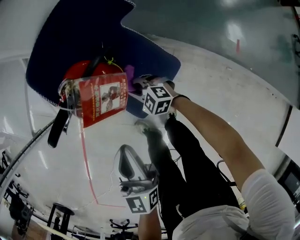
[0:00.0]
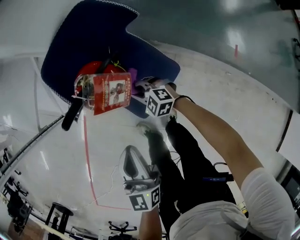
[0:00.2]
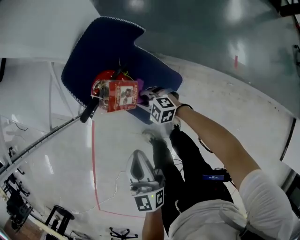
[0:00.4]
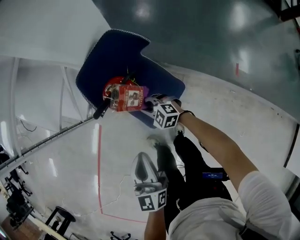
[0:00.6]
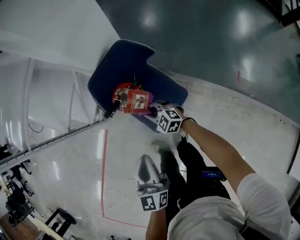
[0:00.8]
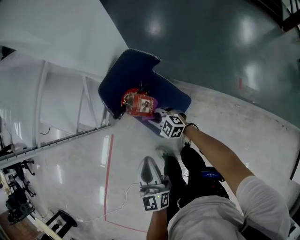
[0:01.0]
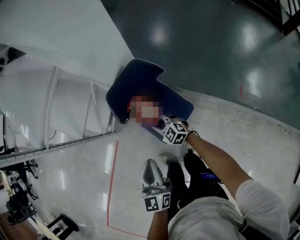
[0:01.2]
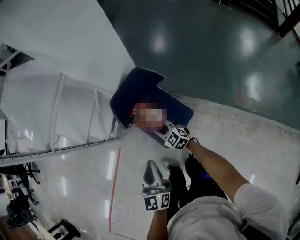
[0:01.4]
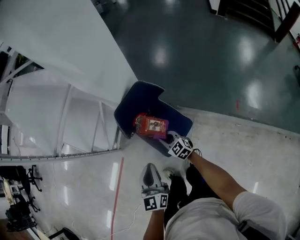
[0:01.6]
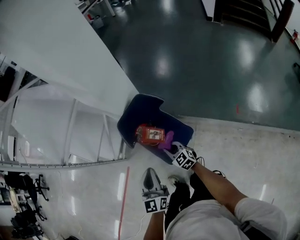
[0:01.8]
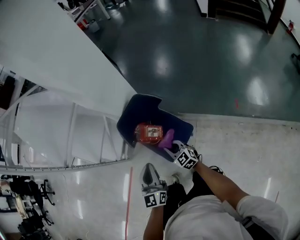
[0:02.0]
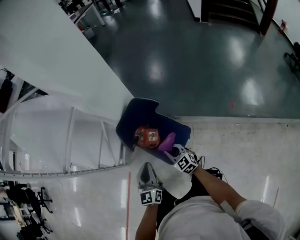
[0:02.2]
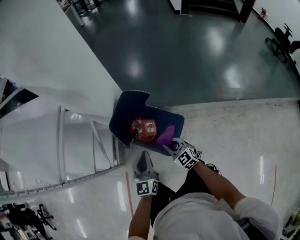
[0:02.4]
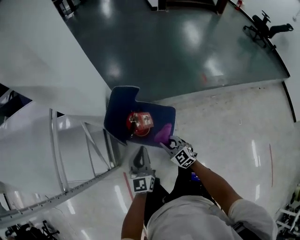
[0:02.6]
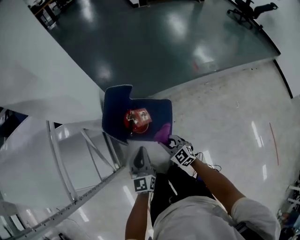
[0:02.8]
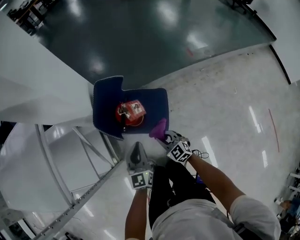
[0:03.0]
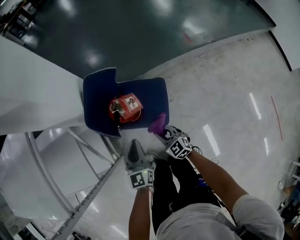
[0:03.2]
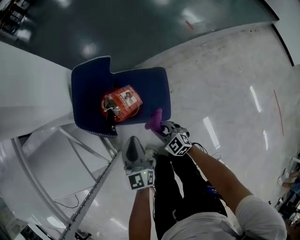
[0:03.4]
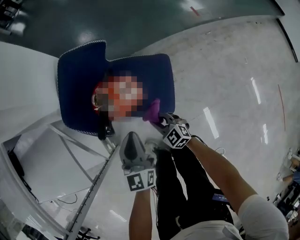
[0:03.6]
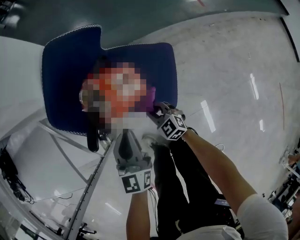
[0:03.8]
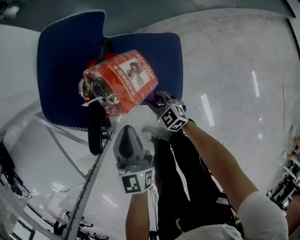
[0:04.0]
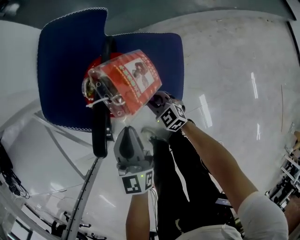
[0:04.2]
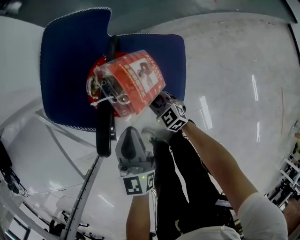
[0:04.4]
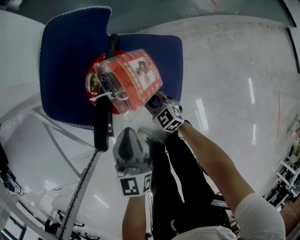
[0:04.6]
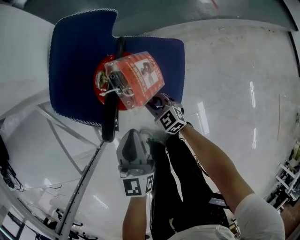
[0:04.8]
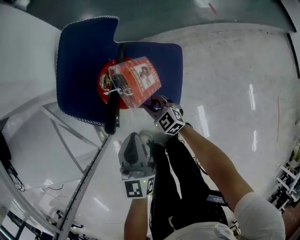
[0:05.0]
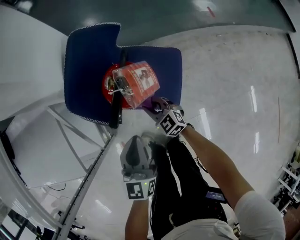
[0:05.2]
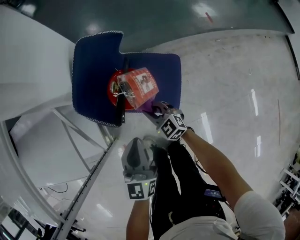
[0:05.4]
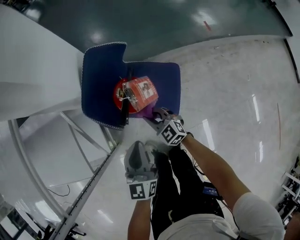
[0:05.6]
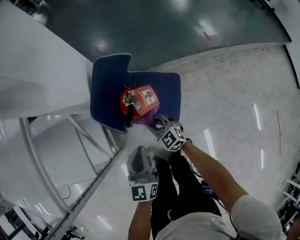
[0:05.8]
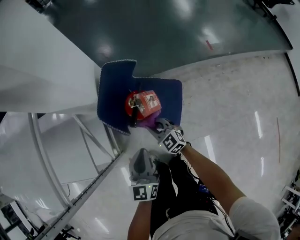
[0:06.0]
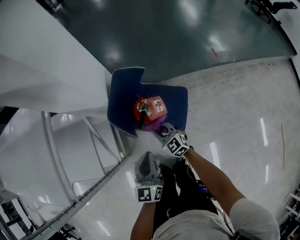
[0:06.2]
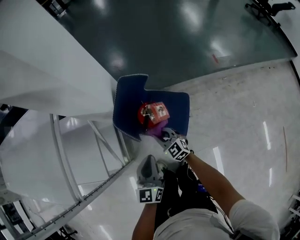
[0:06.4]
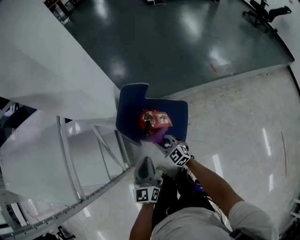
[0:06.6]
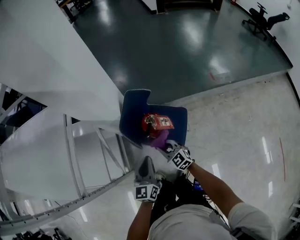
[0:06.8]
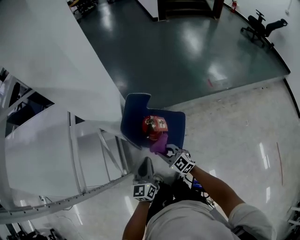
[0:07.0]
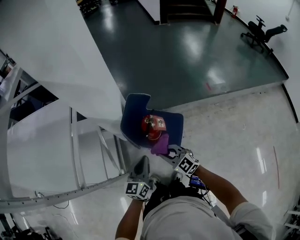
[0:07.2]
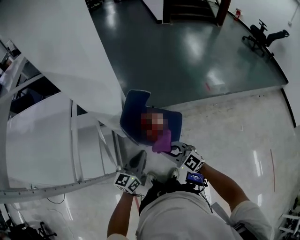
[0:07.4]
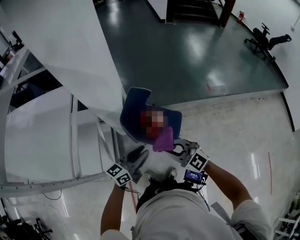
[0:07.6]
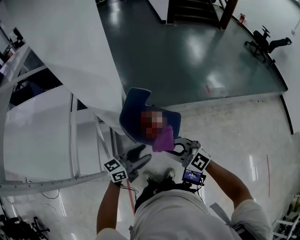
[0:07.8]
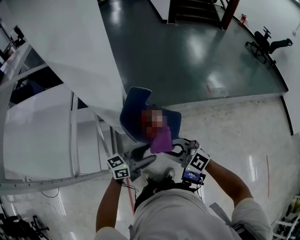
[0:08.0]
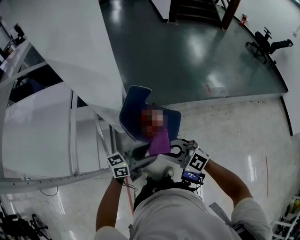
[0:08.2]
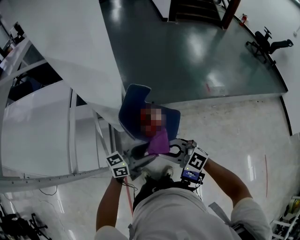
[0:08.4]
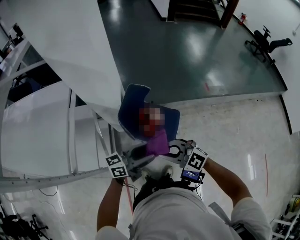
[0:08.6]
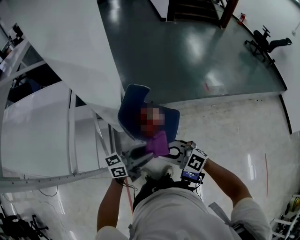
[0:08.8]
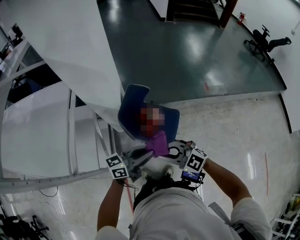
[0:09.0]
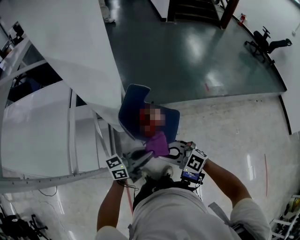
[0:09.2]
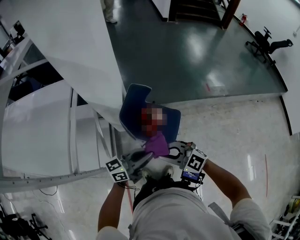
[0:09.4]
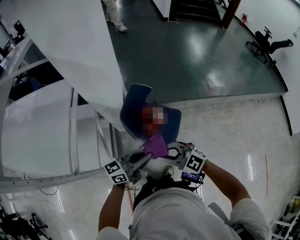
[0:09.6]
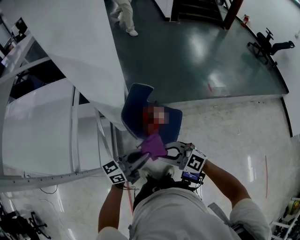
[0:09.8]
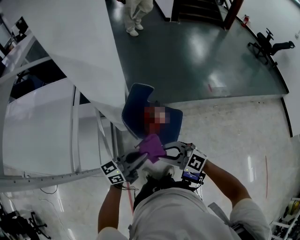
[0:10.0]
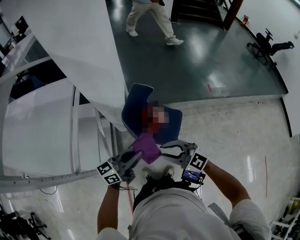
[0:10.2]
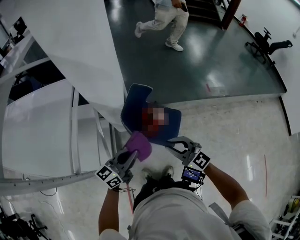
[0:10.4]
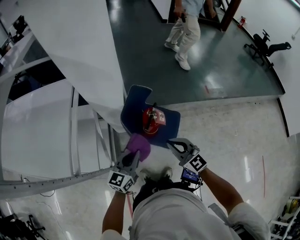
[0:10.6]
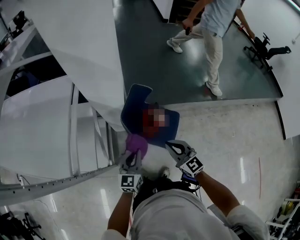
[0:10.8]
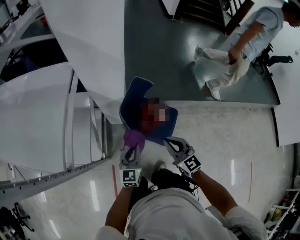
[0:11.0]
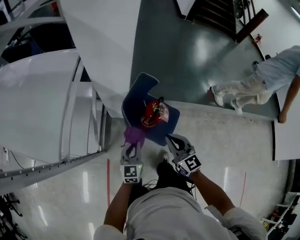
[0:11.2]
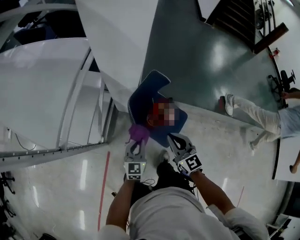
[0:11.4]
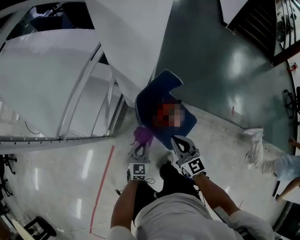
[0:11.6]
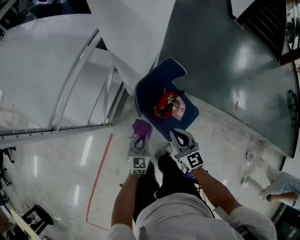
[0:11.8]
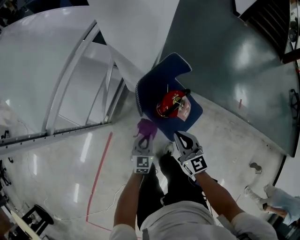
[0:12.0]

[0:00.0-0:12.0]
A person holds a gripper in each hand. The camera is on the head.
0:00.0 to 0:01.6: The two grippers go approximately 25 cm upward. The right gripper turns by roughly 30 degrees.
0:01.6 to 0:03.0: The left gripper moves approximately 10 cm, and changes its angle by roughly 40 degrees. The right gripper moves about 10 cm, and swivels about 40 degrees.
0:03.0 to 0:04.4: The two grippers go about 25 cm downward.
0:04.4 to 0:06.0: The two grippers go about 20 cm upward.
0:06.0 to 0:07.6: The right gripper travels upward and backward by some 35 cm, and changes its angle by roughly 30 degrees. The left gripper travels upward by roughly 15 cm, and rotates some 40 degrees.
0:07.6 to 0:09.0: The left gripper ends up roughly 5 cm from where it was, and opens, then closes again.
0:09.0 to 0:10.4: The left gripper ends up approximately 10 cm from where it was, and rotates roughly 20 degrees, while the right gripper turns by roughly 20 degrees.
0:10.4 to 0:12.0: The right gripper is displaced downward by approximately 15 cm, while the left gripper heads downward, covering approximately 30 cm, and turns by about 60 degrees.

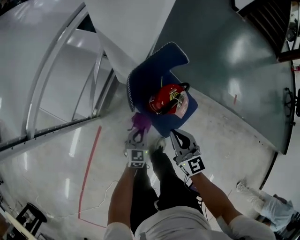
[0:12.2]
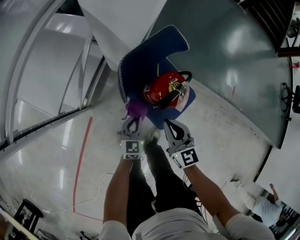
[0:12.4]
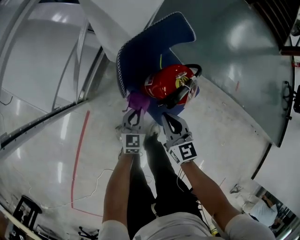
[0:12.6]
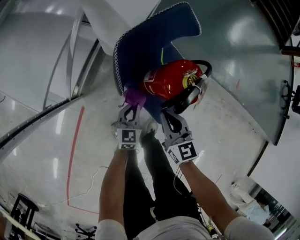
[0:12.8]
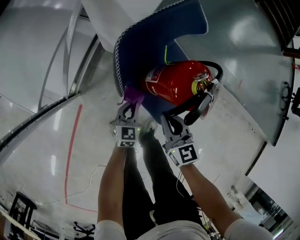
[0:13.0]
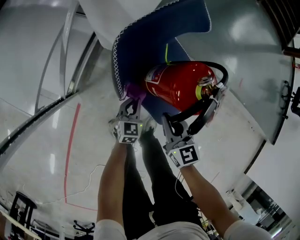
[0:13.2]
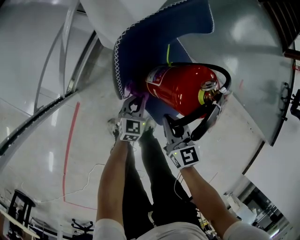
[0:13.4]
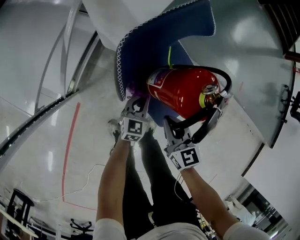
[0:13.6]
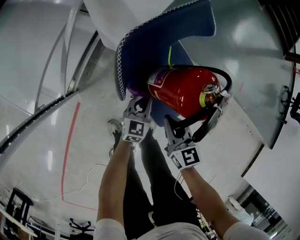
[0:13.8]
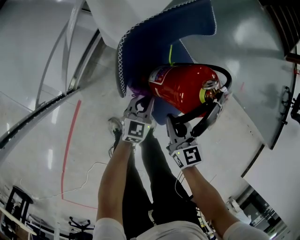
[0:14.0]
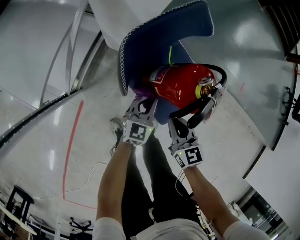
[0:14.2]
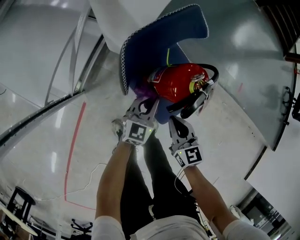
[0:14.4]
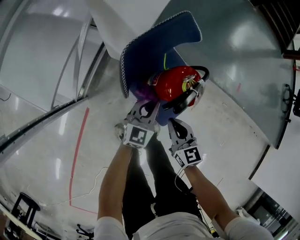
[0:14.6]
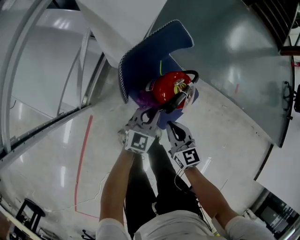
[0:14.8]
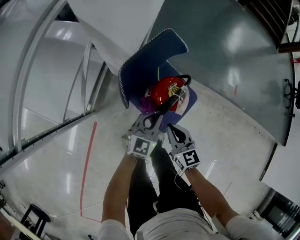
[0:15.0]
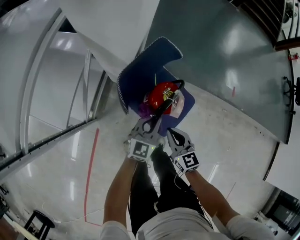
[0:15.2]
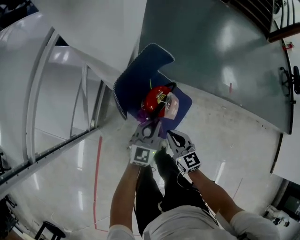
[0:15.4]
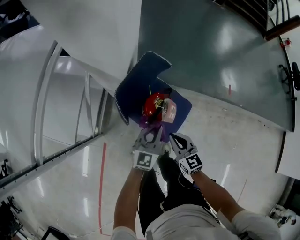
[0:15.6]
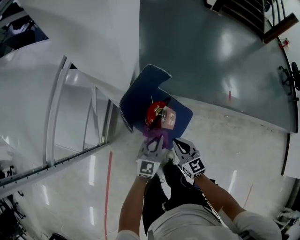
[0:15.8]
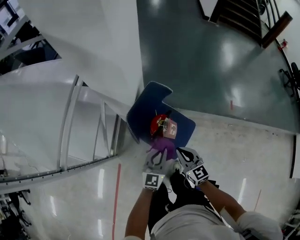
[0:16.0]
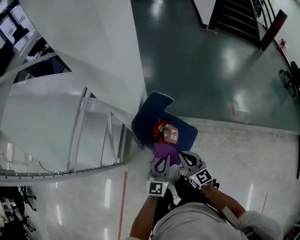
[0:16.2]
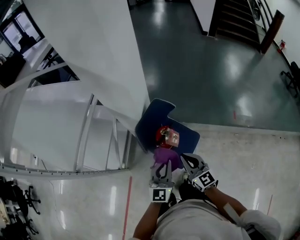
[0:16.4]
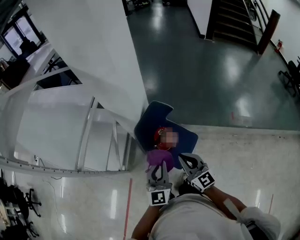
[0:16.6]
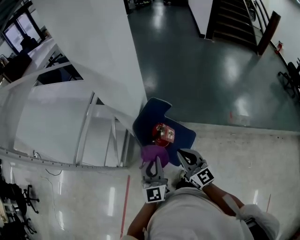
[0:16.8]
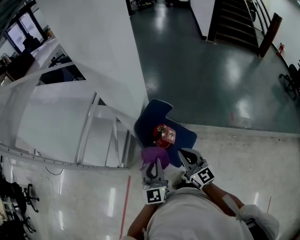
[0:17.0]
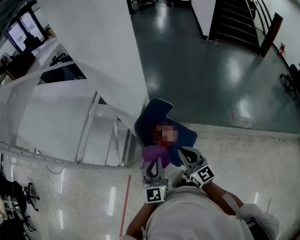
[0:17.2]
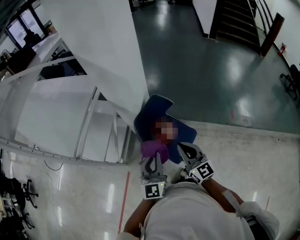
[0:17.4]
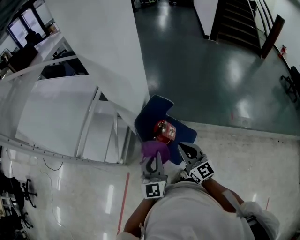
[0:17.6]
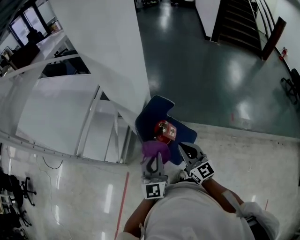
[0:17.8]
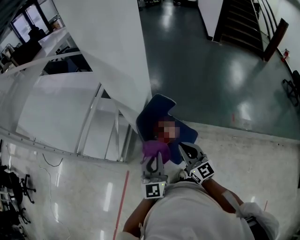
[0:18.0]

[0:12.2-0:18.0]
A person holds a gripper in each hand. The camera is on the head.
0:12.2 to 0:13.6: The right gripper travels downward by some 20 cm, while the left gripper shifts some 20 cm downward and forward.
0:13.6 to 0:15.0: The right gripper travels upward by roughly 10 cm. Meanwhile the left gripper goes approximately 25 cm upward, and rotates roughly 20 degrees.
0:15.0 to 0:16.6: The two grippers go some 30 cm upward. The right gripper turns by some 20 degrees, while the left gripper rotates some 20 degrees.
0:16.6 to 0:18.0: The grippers move only a little.

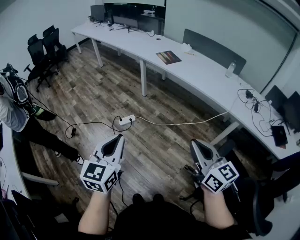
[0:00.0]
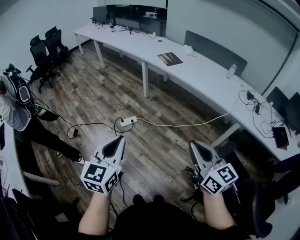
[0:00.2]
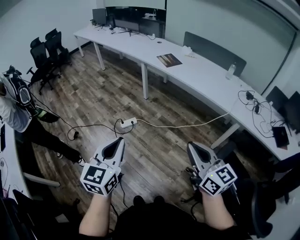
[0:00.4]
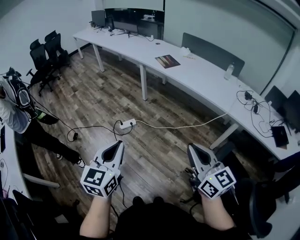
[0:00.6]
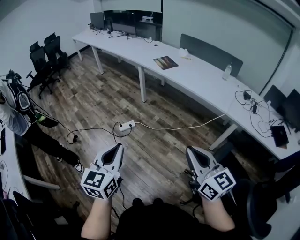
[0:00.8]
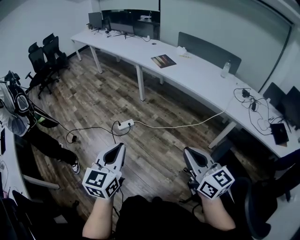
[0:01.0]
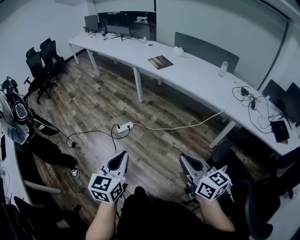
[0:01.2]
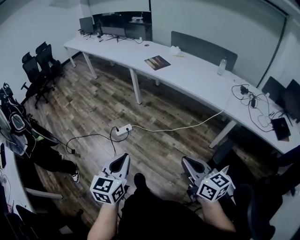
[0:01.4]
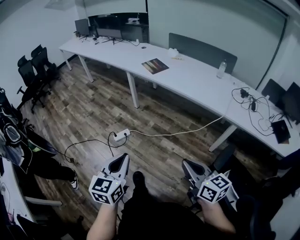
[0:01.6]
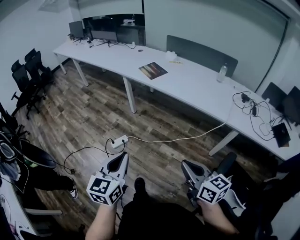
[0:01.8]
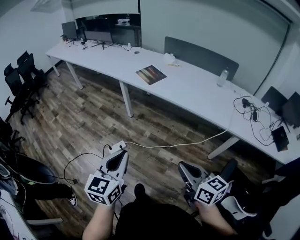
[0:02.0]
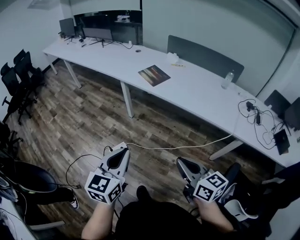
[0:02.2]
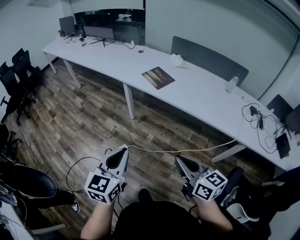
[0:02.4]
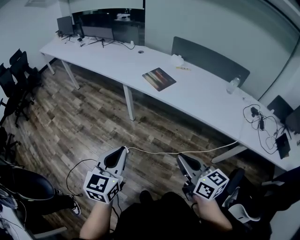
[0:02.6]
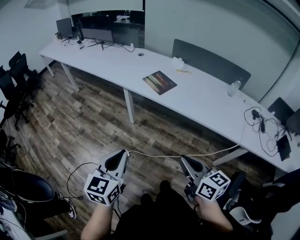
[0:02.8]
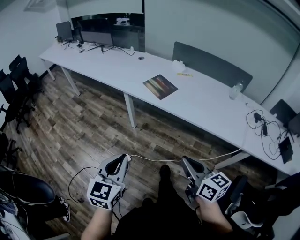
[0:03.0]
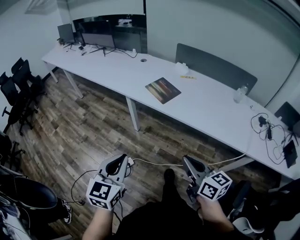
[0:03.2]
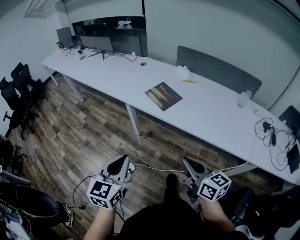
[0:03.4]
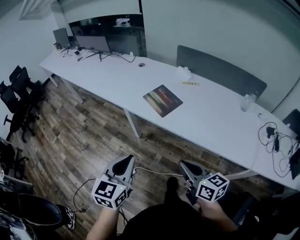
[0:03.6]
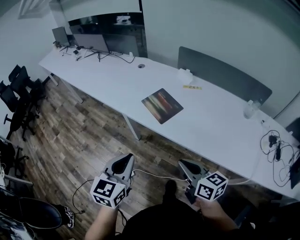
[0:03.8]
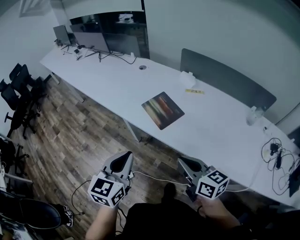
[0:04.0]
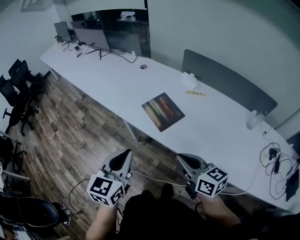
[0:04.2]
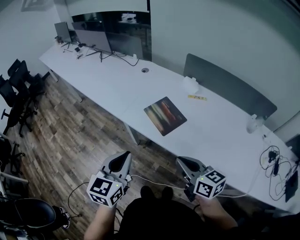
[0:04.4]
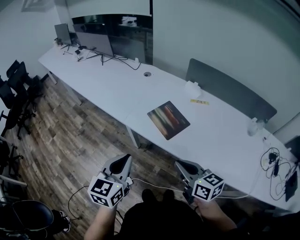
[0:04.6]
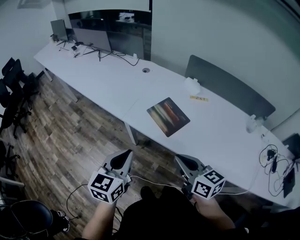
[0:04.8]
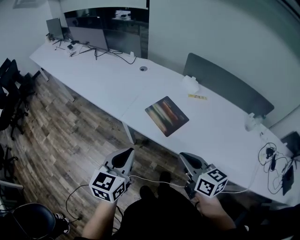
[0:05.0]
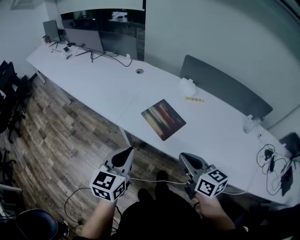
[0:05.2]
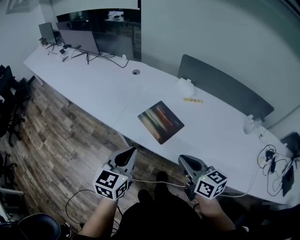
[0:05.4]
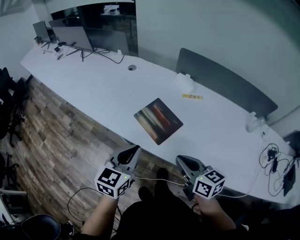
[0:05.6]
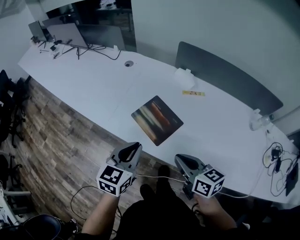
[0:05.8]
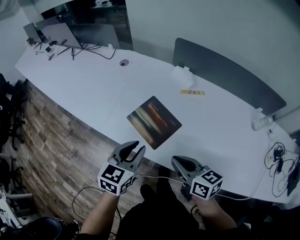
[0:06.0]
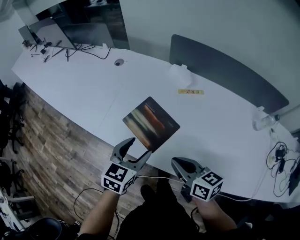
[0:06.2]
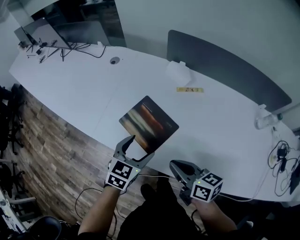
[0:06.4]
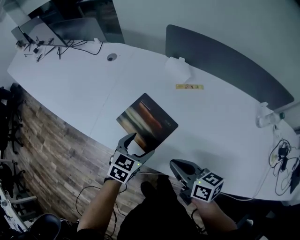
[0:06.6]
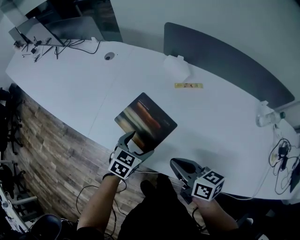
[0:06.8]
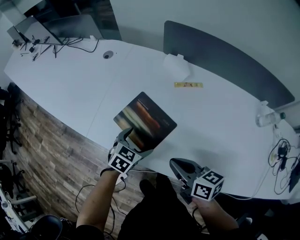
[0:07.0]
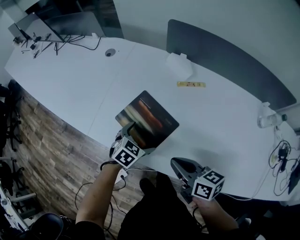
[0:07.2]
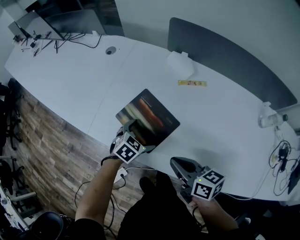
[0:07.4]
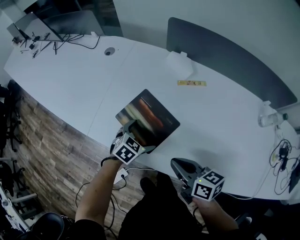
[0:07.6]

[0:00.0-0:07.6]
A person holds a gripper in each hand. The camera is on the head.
0:00.0 to 0:01.6: The left gripper shifts some 10 cm to the right, downward and forward. Meanwhile the right gripper moves downward and to the right, roughly 10 cm.
0:01.6 to 0:03.0: The grippers both shift forward by about 35 cm.
0:03.0 to 0:04.6: The grippers both shift forward by roughly 35 cm.
0:04.6 to 0:06.0: The right gripper is displaced forward, downward and to the right by about 20 cm; the left gripper goes approximately 25 cm forward, to the right and downward.
0:06.0 to 0:07.6: The right gripper shifts approximately 5 cm downward; the left gripper moves downward and forward, about 25 cm, rotates about 30 degrees, and opens up.
